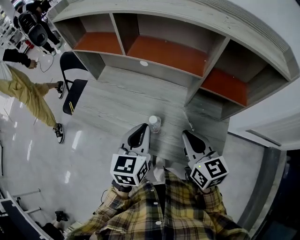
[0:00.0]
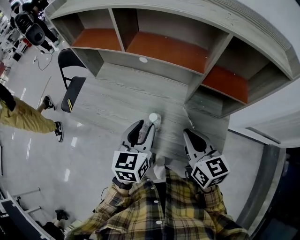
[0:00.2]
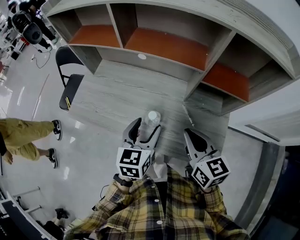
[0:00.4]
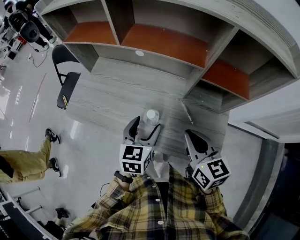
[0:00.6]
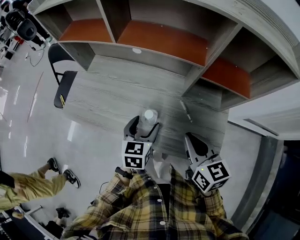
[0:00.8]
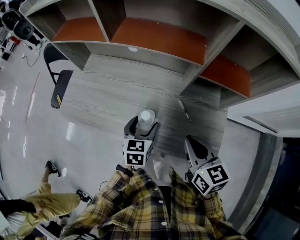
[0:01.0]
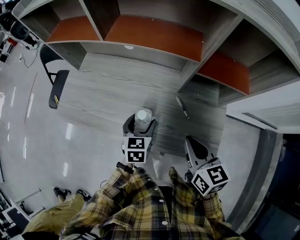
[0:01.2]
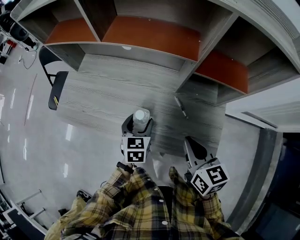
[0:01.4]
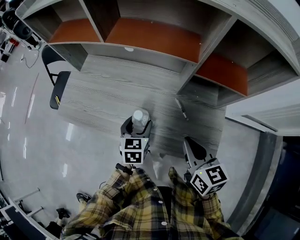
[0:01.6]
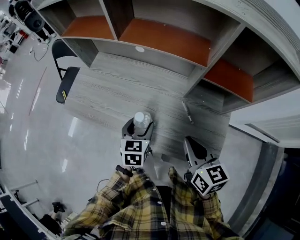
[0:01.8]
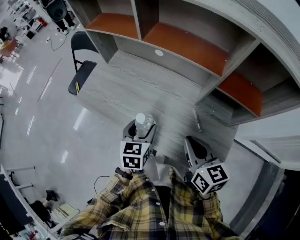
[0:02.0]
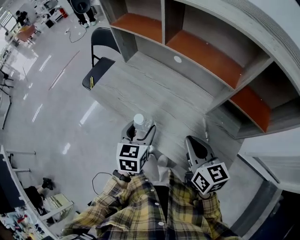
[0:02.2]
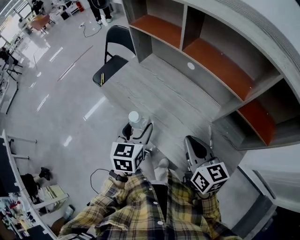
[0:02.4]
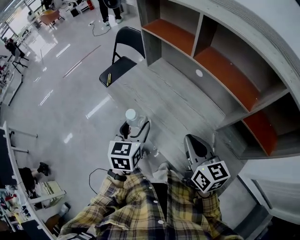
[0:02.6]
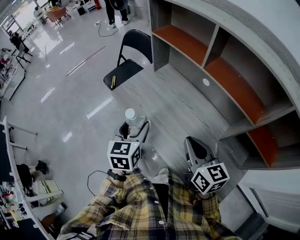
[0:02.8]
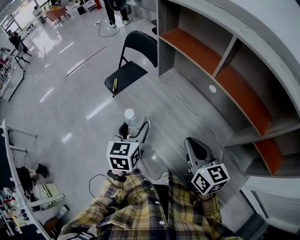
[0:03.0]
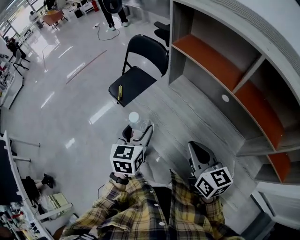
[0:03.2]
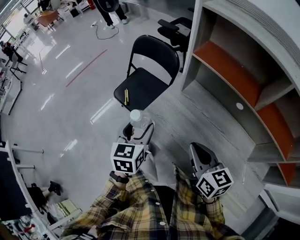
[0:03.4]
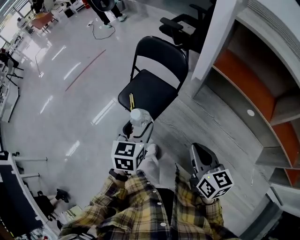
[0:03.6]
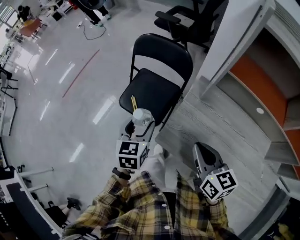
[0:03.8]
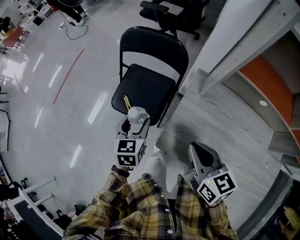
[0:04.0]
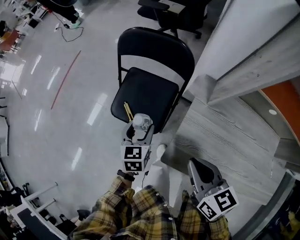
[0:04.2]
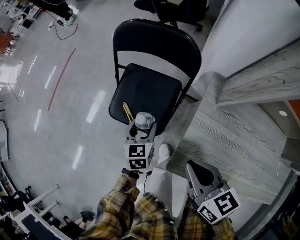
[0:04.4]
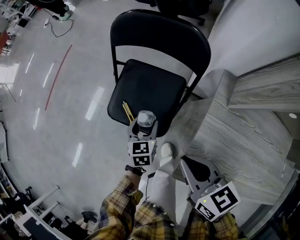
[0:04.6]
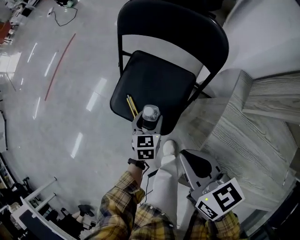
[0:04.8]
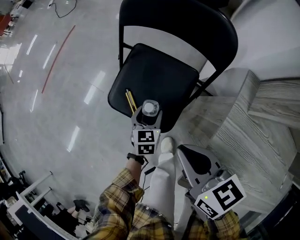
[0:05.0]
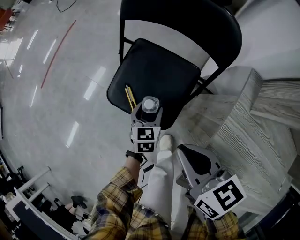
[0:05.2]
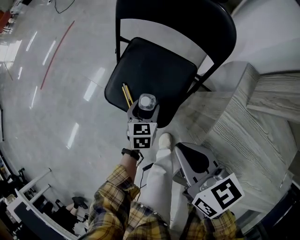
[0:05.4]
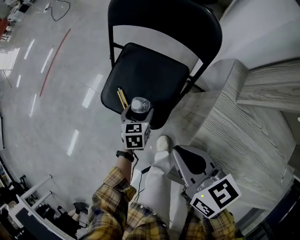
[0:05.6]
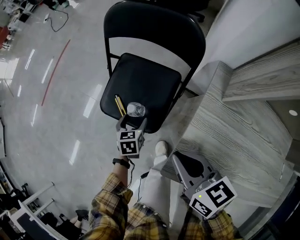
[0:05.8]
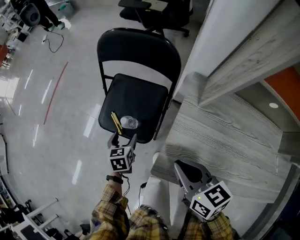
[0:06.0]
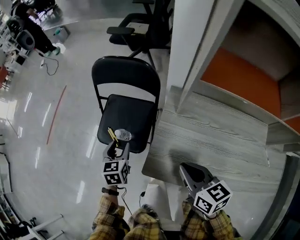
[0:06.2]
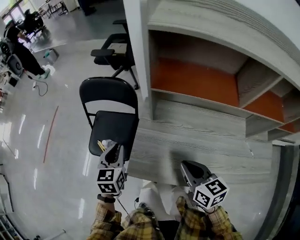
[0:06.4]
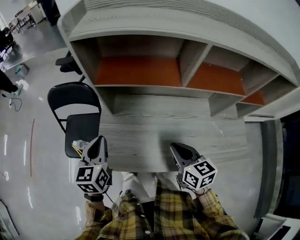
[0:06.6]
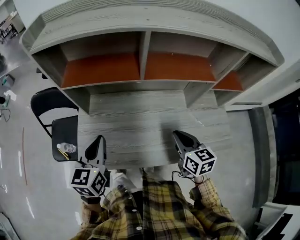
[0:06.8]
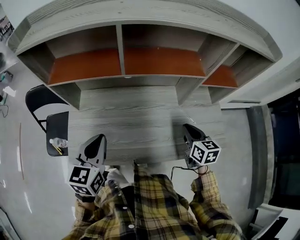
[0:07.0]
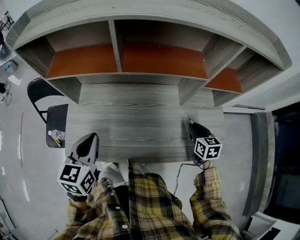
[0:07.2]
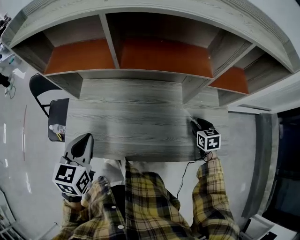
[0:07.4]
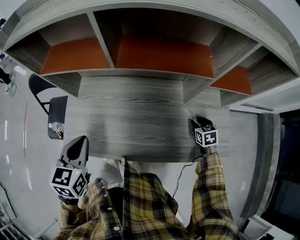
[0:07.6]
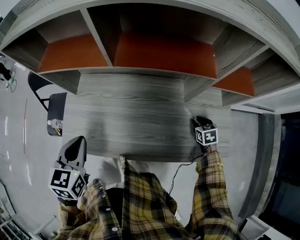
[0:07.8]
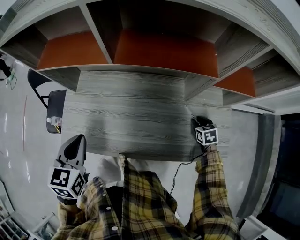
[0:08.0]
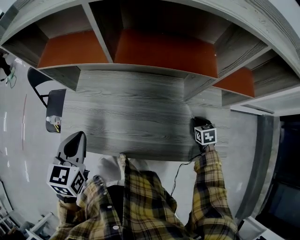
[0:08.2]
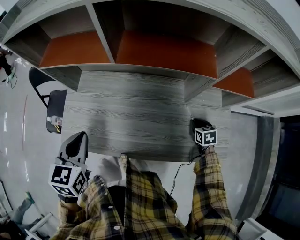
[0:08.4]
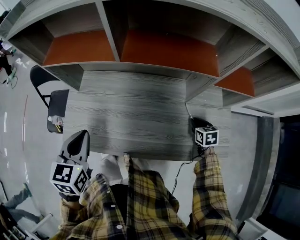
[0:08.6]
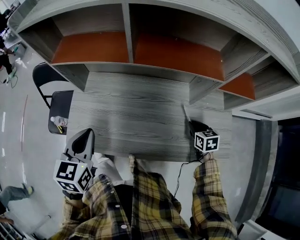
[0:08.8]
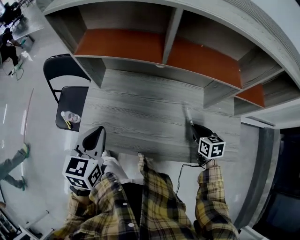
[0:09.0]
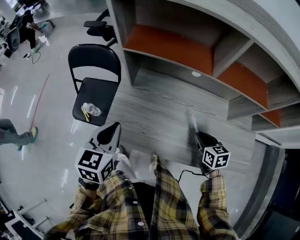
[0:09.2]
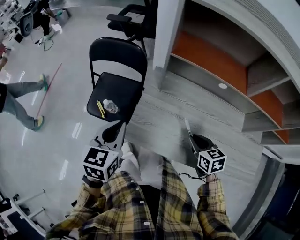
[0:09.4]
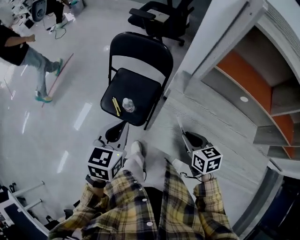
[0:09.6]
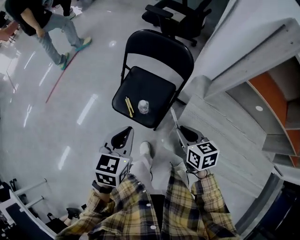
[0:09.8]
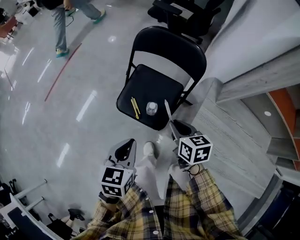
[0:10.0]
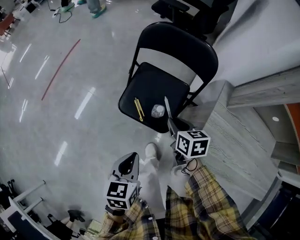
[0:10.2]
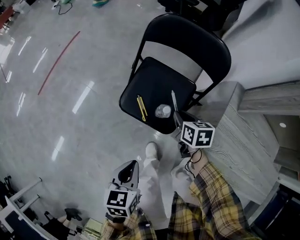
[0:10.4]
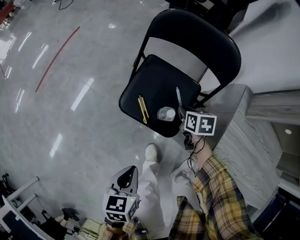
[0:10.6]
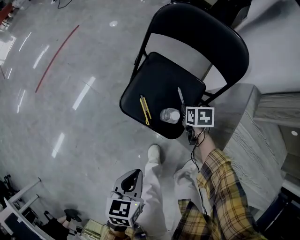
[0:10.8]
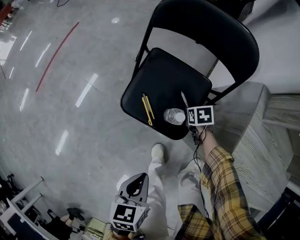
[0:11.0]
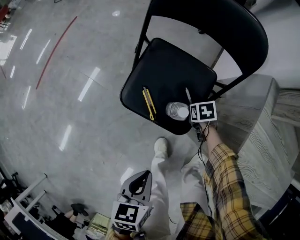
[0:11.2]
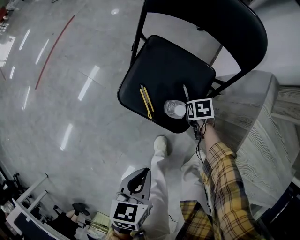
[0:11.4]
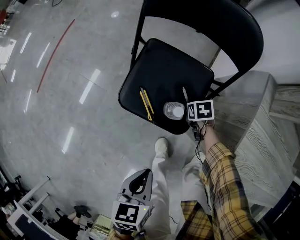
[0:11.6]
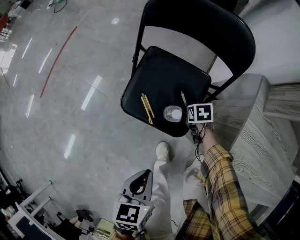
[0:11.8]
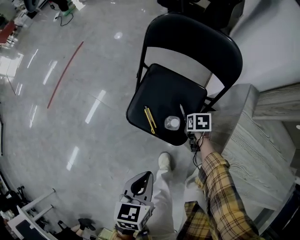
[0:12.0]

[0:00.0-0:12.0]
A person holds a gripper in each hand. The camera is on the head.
0:00.0 to 0:01.6: The left gripper goes some 15 cm downward, and opens. Meanwhile the right gripper goes some 5 cm downward.
0:01.6 to 0:03.0: The left gripper ends up some 30 cm from where it was, and turns by approximately 30 degrees, while the right gripper changes place by some 25 cm, and turns by roughly 30 degrees.
0:03.0 to 0:04.4: The pair of grippers is taken forward and to the left, about 50 cm. The left gripper moves downward, roughly 30 cm, and changes its angle by about 20 degrees; the right gripper goes approximately 15 cm downward, and swivels about 20 degrees.
0:04.4 to 0:06.0: The right gripper moves roughly 10 cm forward and comes back. The left gripper travels downward by roughly 5 cm.
0:06.0 to 0:07.6: The two grippers travel together, roughly 60 cm. The left gripper rotates some 40 degrees, and closes. The right gripper changes its angle by approximately 40 degrees, and opens.
0:07.6 to 0:09.0: The left gripper is displaced to the left by roughly 5 cm. The right gripper shifts roughly 15 cm to the left and upward.
0:09.0 to 0:10.4: The pair of grippers is taken to the left, some 60 cm. The left gripper moves downward, about 25 cm, and swivels roughly 40 degrees. Meanwhile the right gripper turns by roughly 20 degrees.
0:10.4 to 0:12.0: The left gripper moves some 10 cm downward and comes back, while the right gripper travels downward by about 15 cm, and rotates roughly 20 degrees.

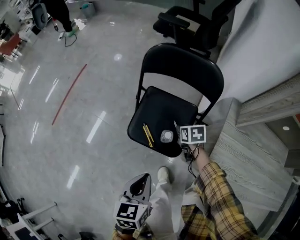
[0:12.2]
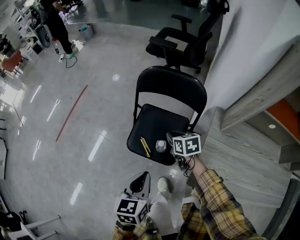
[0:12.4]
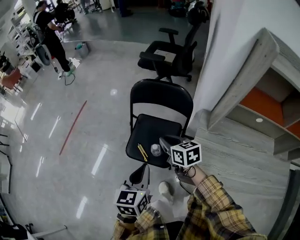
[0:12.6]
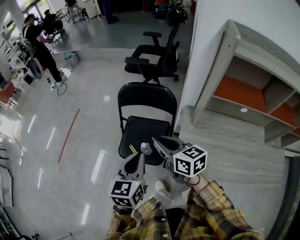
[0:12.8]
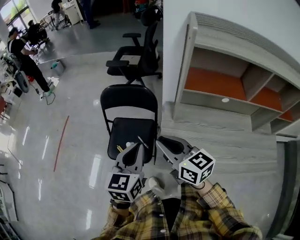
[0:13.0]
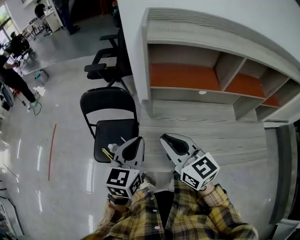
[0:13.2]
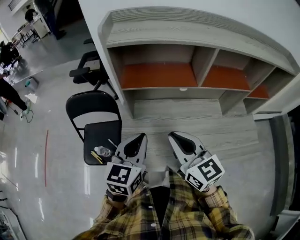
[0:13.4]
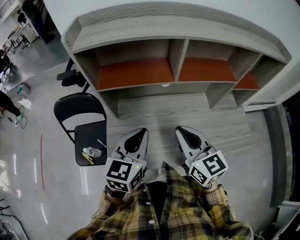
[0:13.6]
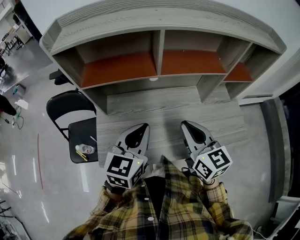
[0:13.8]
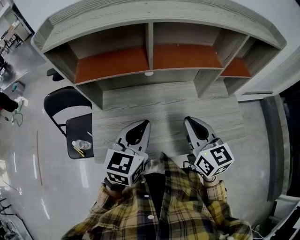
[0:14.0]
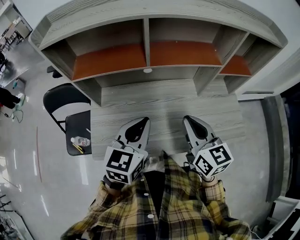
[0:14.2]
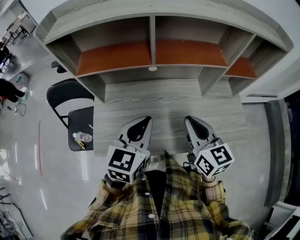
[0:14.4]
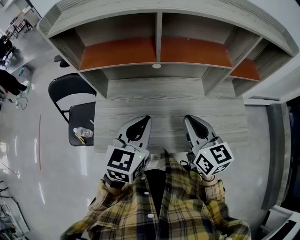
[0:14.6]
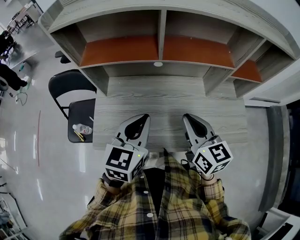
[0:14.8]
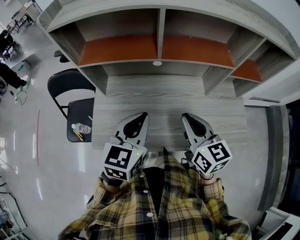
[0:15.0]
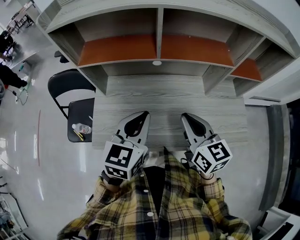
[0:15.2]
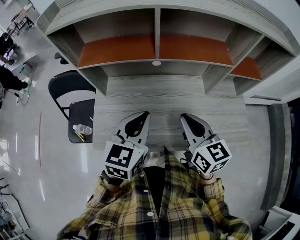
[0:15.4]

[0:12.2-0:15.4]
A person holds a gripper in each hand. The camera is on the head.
0:12.2 to 0:13.8: The pair of grippers is taken about 60 cm. The left gripper changes its angle by some 50 degrees, while the right gripper tips its fingers upward by approximately 50 degrees.
0:13.8 to 0:15.4: The grippers move only a little.

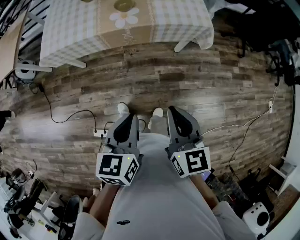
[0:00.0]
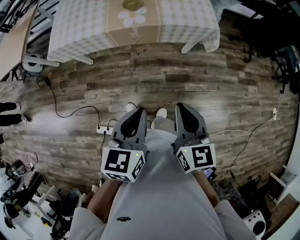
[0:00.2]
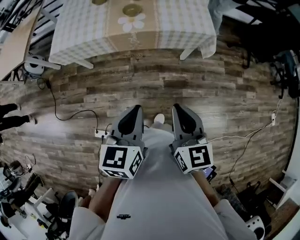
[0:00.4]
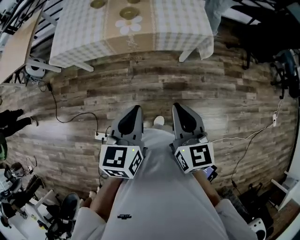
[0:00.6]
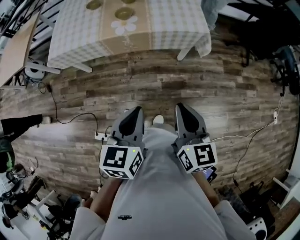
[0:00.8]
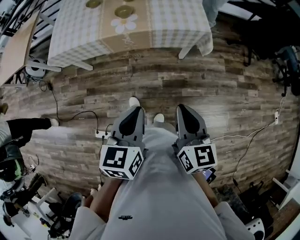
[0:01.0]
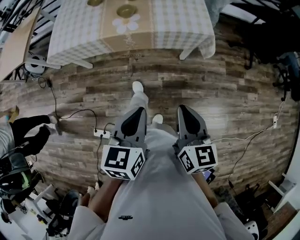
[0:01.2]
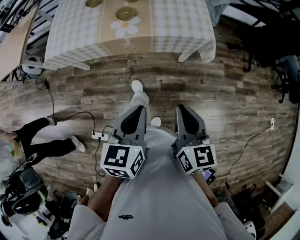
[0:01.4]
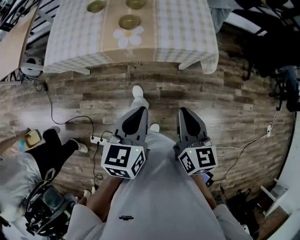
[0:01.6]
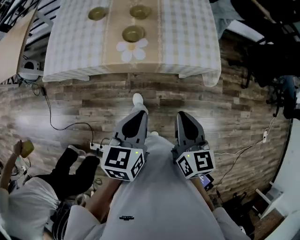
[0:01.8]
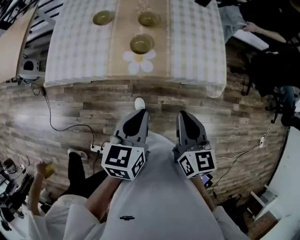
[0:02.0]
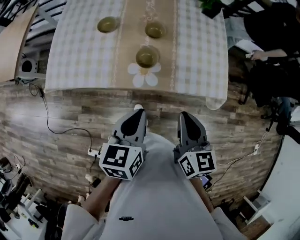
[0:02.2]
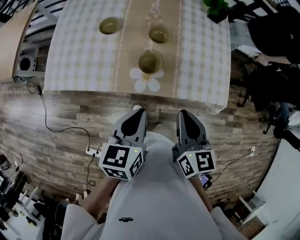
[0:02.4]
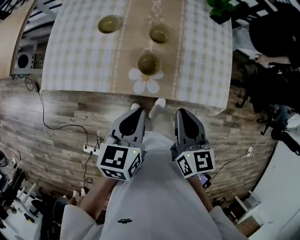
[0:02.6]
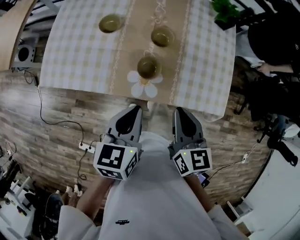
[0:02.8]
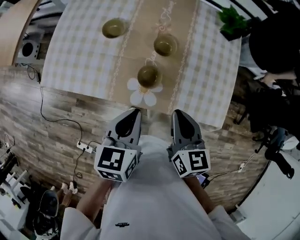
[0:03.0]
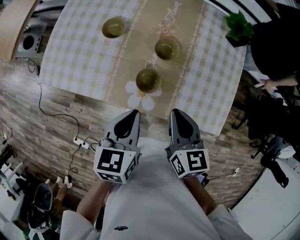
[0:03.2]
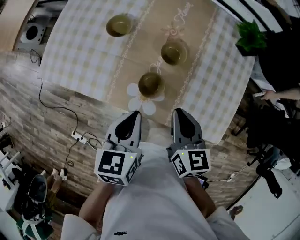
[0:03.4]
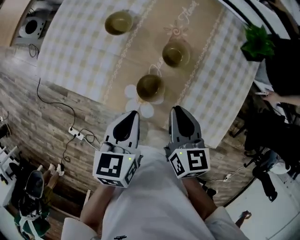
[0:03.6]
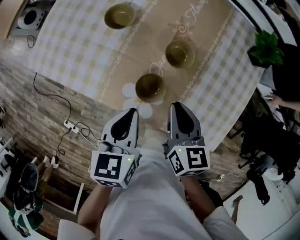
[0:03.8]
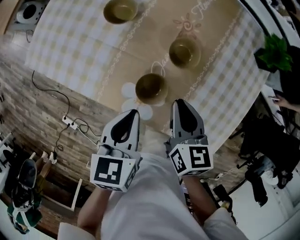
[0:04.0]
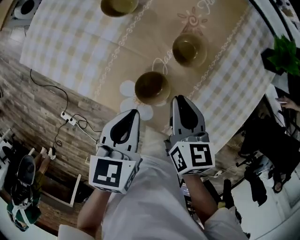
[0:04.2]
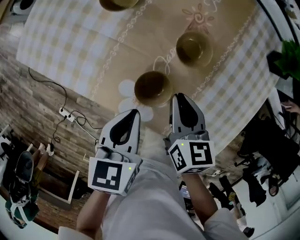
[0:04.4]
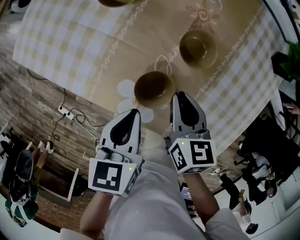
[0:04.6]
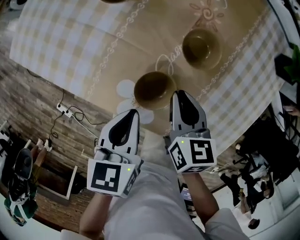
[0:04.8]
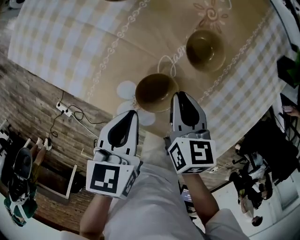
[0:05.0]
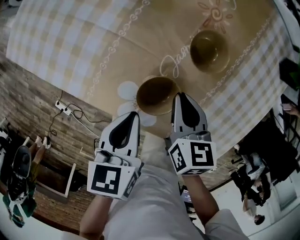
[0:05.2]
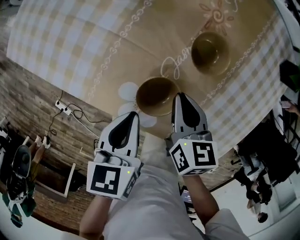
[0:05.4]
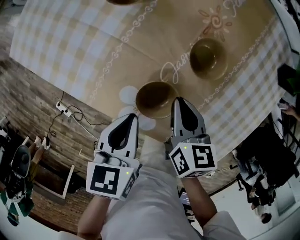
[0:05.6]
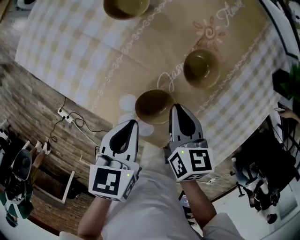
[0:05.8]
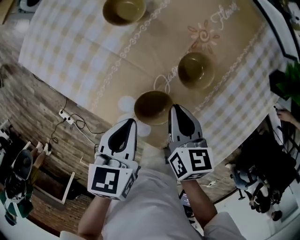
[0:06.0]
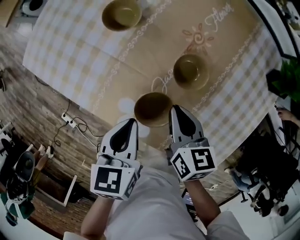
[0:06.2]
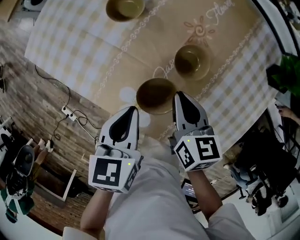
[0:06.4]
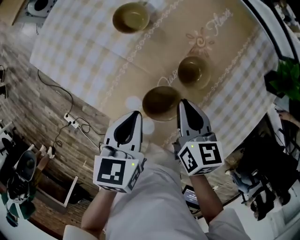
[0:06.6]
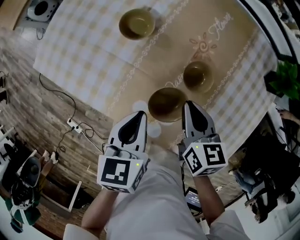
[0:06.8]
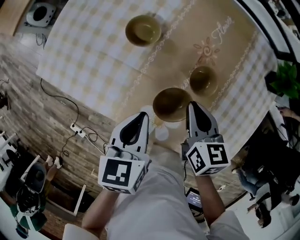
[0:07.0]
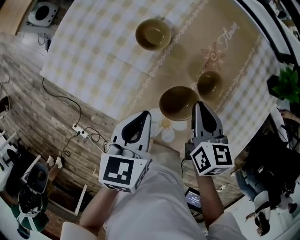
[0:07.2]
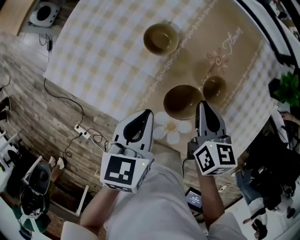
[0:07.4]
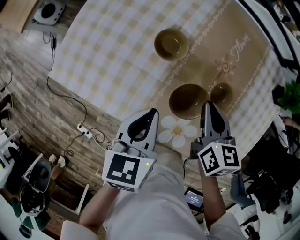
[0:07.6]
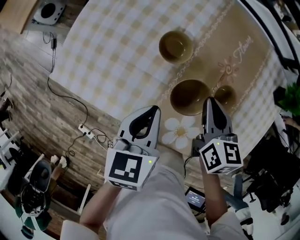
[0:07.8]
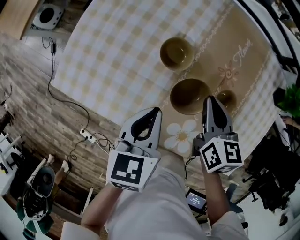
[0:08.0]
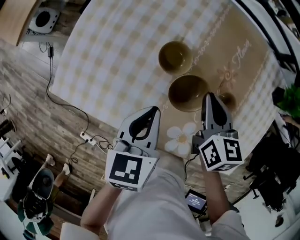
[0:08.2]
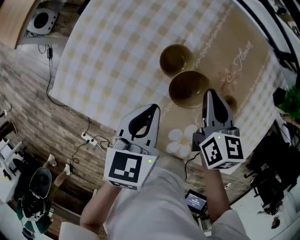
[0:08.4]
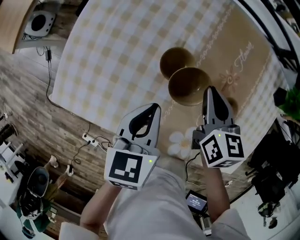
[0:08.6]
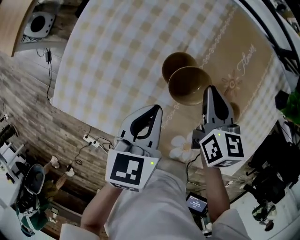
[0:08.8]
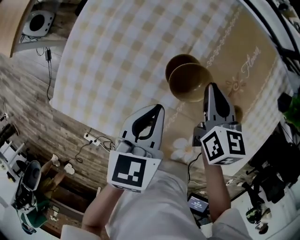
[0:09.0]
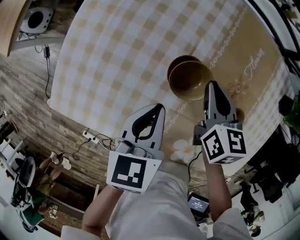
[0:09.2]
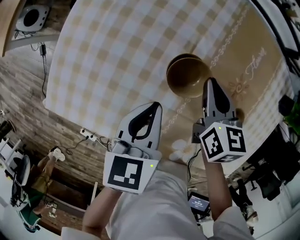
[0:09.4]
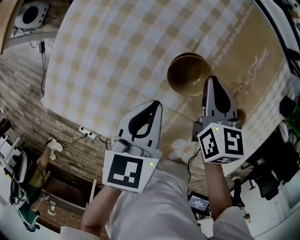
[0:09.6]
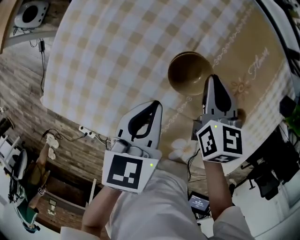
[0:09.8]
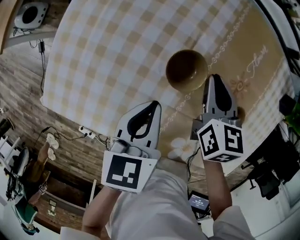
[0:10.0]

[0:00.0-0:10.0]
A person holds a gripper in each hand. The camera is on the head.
0:00.0 to 0:01.4: Both grippers travel together to the right and forward, approximately 15 cm.
0:01.4 to 0:02.8: The pair of grippers is taken forward, about 50 cm.
0:02.8 to 0:04.2: Both grippers travel together downward and forward, some 25 cm. The right gripper changes its angle by roughly 20 degrees; the left gripper turns by roughly 20 degrees.
0:04.2 to 0:05.8: The two grippers go some 5 cm downward.
0:05.8 to 0:07.2: The right gripper travels upward and forward by roughly 10 cm. The left gripper travels forward, upward and to the left by approximately 15 cm.
0:07.2 to 0:08.6: The two grippers go some 15 cm forward and to the left.
0:08.6 to 0:10.0: The two grippers go roughly 5 cm downward.
